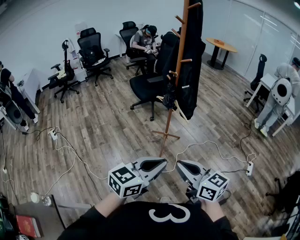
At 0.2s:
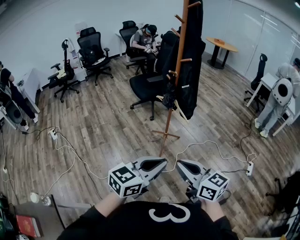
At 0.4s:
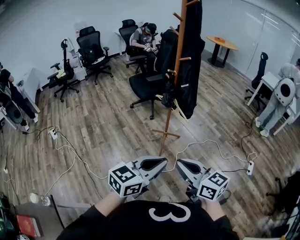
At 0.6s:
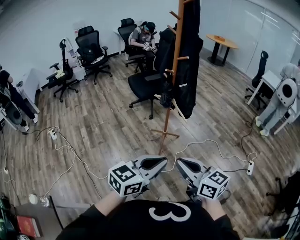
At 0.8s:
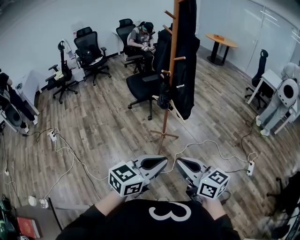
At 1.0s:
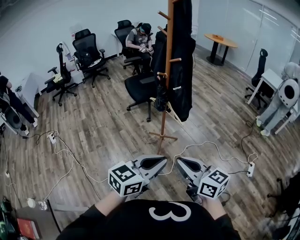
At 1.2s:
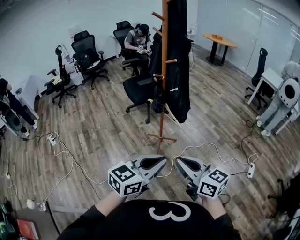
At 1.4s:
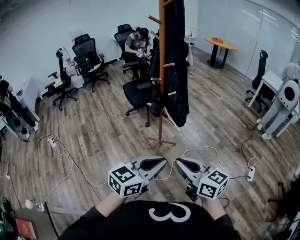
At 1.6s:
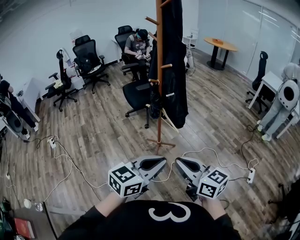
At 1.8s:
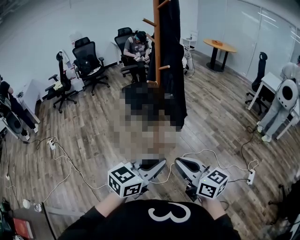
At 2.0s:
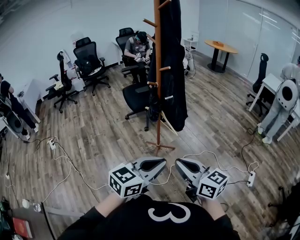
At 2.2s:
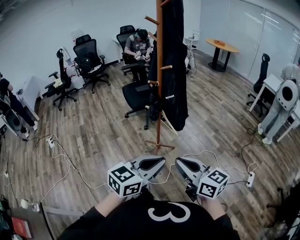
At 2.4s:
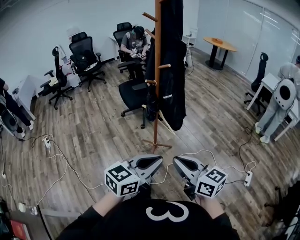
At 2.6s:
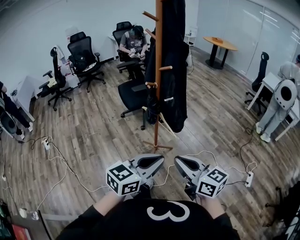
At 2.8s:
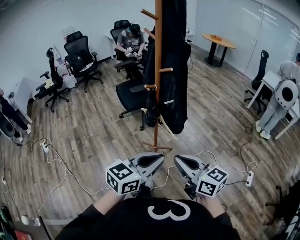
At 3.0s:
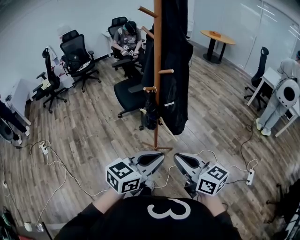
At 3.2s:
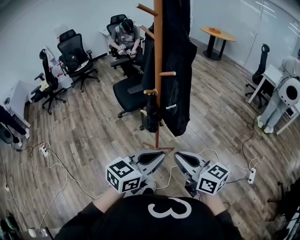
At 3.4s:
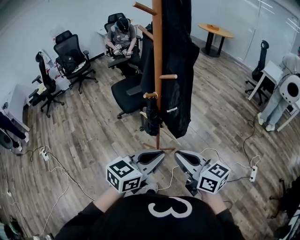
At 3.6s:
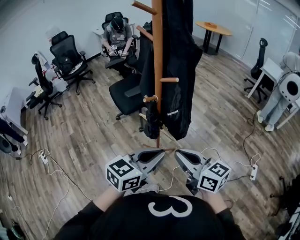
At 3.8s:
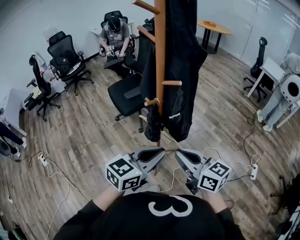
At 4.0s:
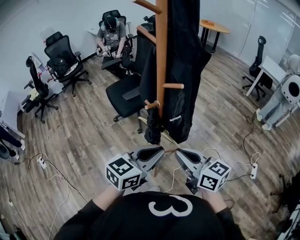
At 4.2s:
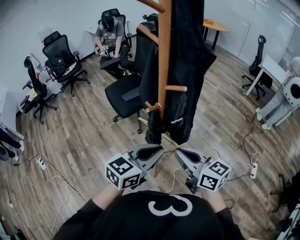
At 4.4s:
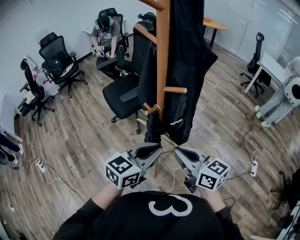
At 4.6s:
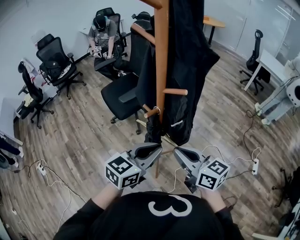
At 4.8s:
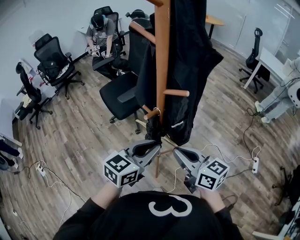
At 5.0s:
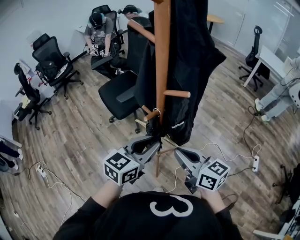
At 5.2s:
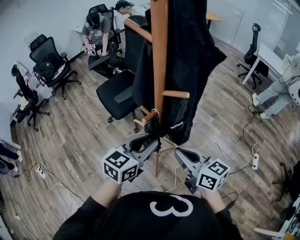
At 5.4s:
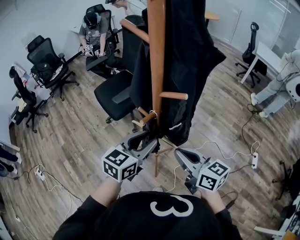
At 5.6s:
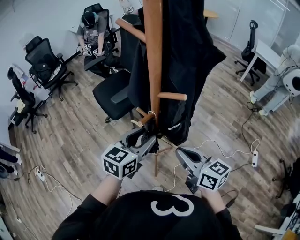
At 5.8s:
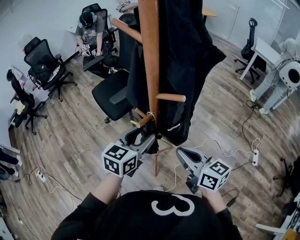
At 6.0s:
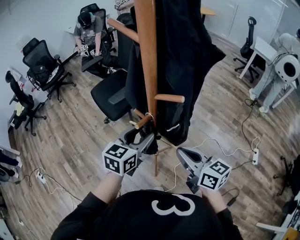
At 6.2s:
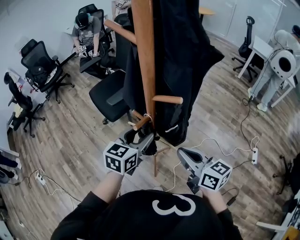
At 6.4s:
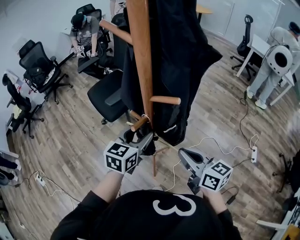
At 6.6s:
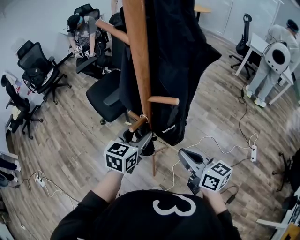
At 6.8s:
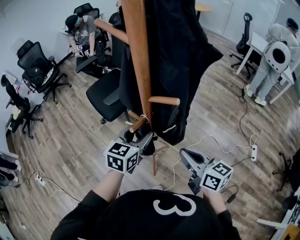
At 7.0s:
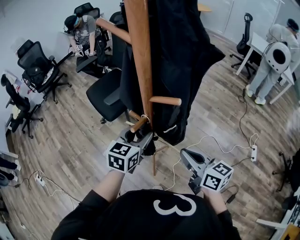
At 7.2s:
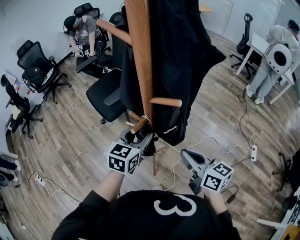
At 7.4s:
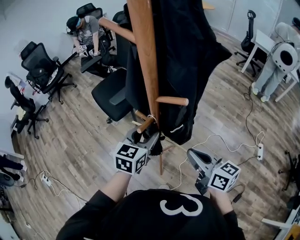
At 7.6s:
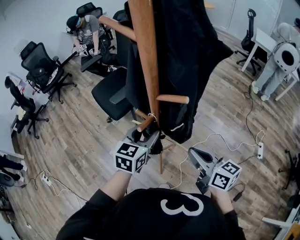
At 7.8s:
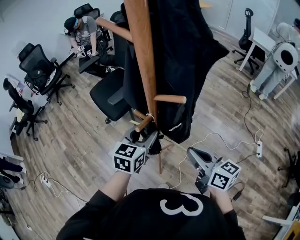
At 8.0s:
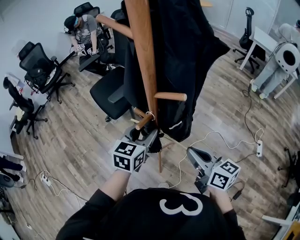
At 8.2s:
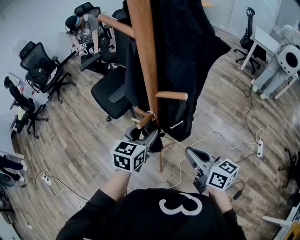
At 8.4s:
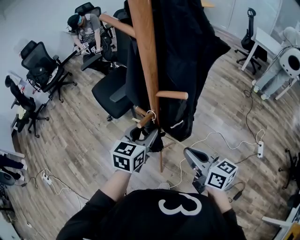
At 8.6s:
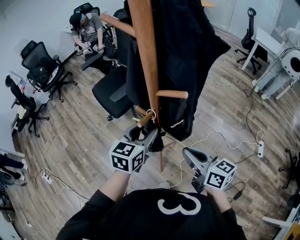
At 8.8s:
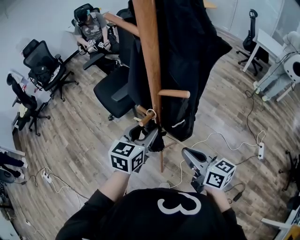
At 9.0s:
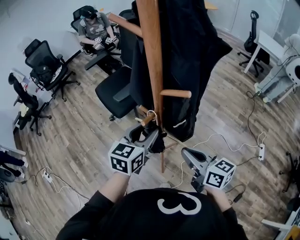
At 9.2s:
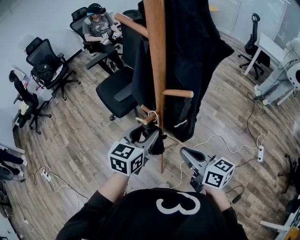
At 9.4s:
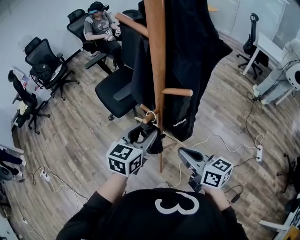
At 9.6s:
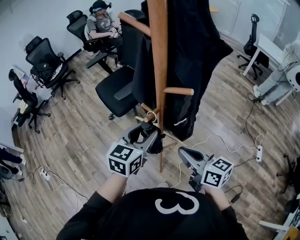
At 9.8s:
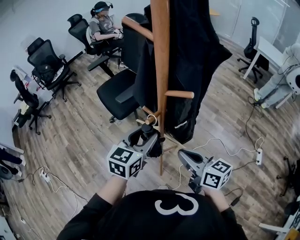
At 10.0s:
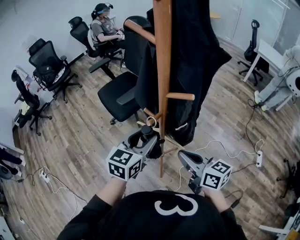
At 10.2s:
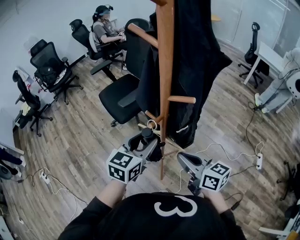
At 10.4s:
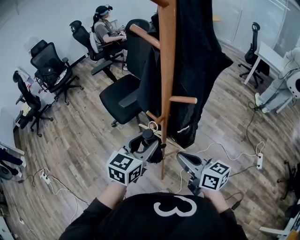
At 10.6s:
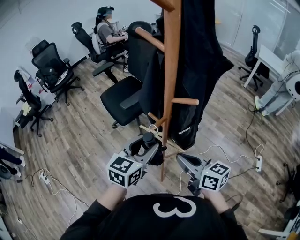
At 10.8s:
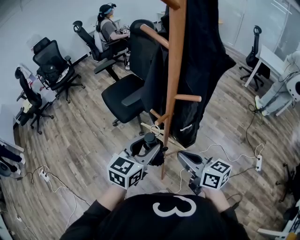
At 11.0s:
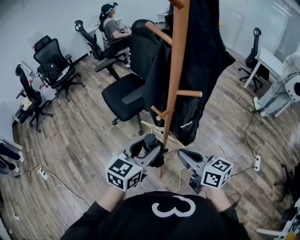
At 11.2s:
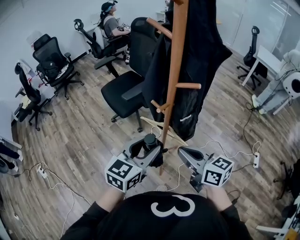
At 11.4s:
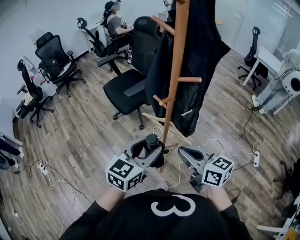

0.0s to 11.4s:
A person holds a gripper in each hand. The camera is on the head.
0.0s to 1.4s: The left gripper shifts some 15 cm to the right and forward. The right gripper travels forward and to the right by roughly 15 cm.
1.4s to 2.8s: Both grippers move forward, some 15 cm.
2.8s to 4.2s: The grippers both shift forward by some 20 cm.
4.2s to 5.6s: The right gripper heads forward, covering about 5 cm, while the left gripper goes roughly 15 cm forward, and opens.
5.6s to 7.2s: The left gripper moves some 5 cm.
7.2s to 8.6s: There are only small adjustments of the grippers.
8.6s to 10.0s: The left gripper shifts by approximately 5 cm.
10.0s to 11.4s: The left gripper heads backward, covering approximately 15 cm, while the right gripper heads backward, covering roughly 5 cm.

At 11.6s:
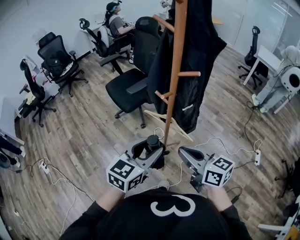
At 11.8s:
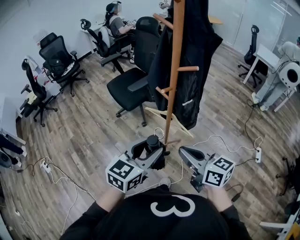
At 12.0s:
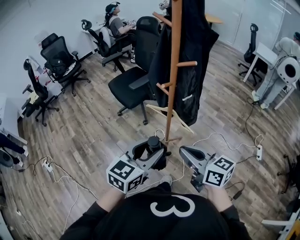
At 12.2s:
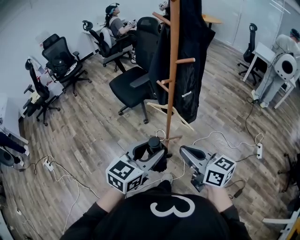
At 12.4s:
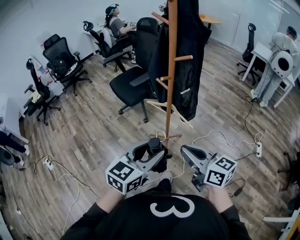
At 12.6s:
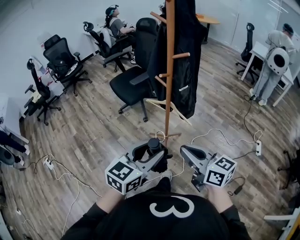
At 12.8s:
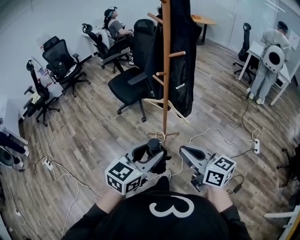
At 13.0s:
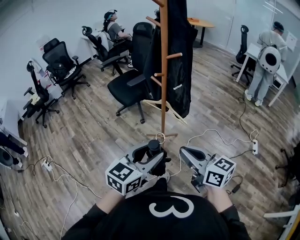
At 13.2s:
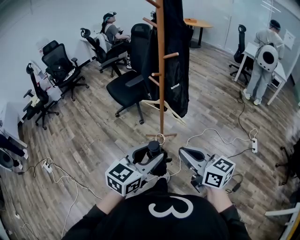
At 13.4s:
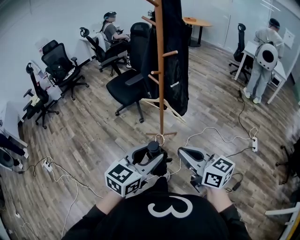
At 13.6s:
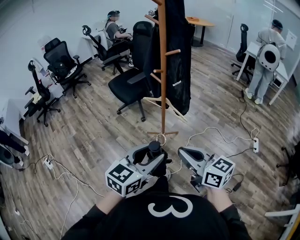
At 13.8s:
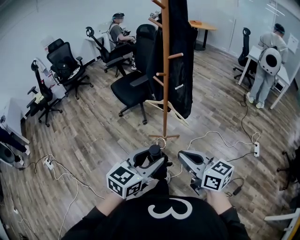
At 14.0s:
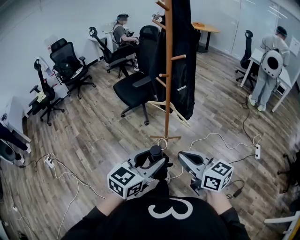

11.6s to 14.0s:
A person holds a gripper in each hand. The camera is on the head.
11.6s to 12.8s: Both grippers travel together backward, approximately 20 cm.
12.8s to 14.0s: Both grippers move backward, approximately 5 cm.

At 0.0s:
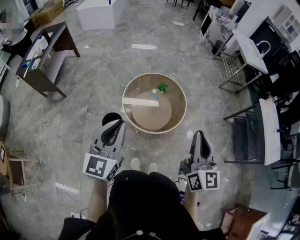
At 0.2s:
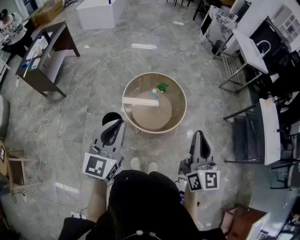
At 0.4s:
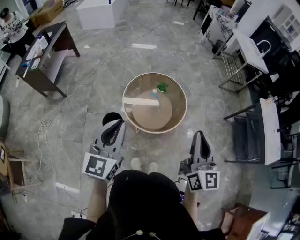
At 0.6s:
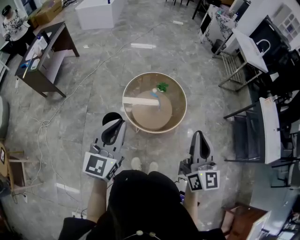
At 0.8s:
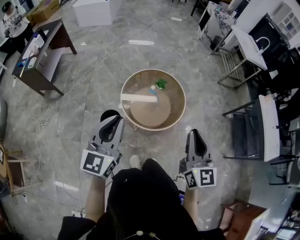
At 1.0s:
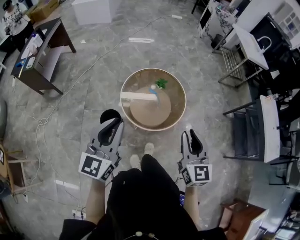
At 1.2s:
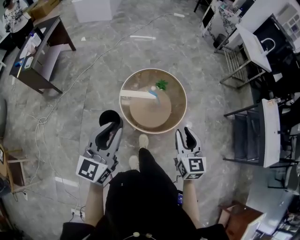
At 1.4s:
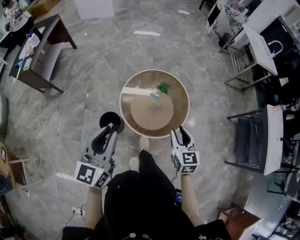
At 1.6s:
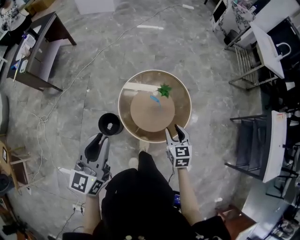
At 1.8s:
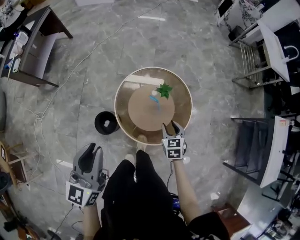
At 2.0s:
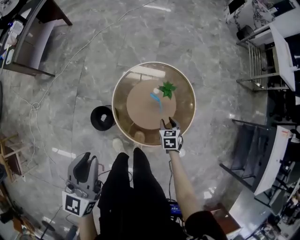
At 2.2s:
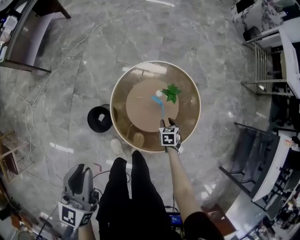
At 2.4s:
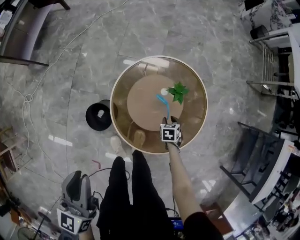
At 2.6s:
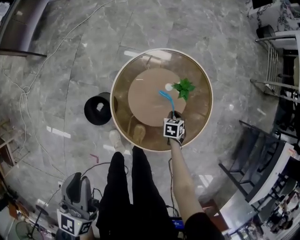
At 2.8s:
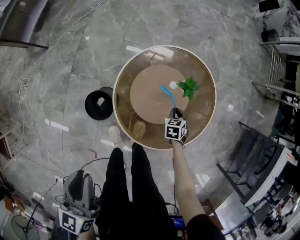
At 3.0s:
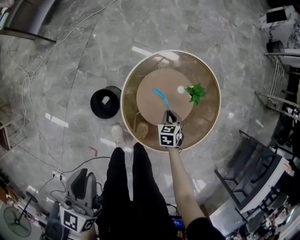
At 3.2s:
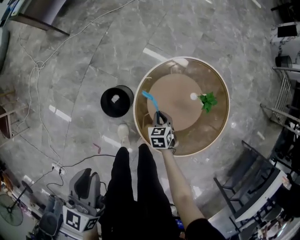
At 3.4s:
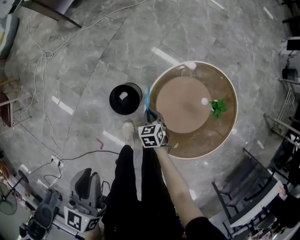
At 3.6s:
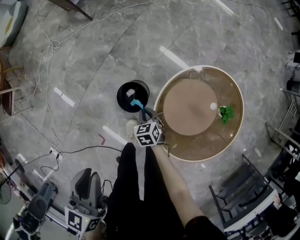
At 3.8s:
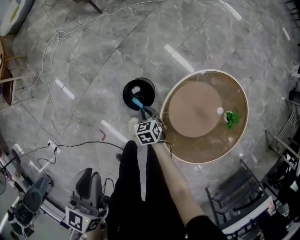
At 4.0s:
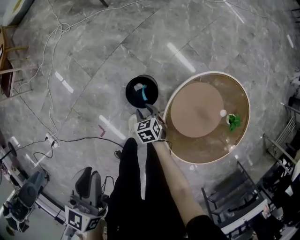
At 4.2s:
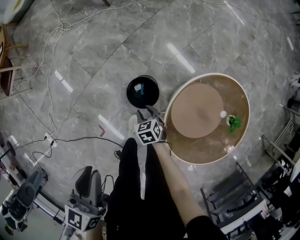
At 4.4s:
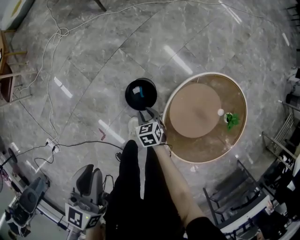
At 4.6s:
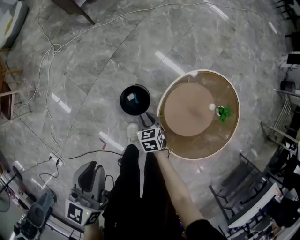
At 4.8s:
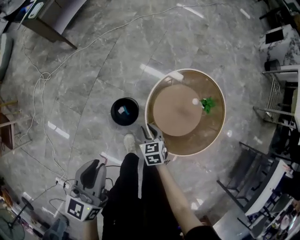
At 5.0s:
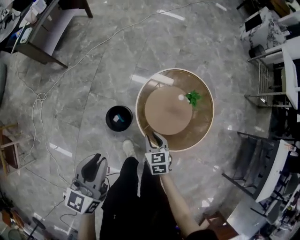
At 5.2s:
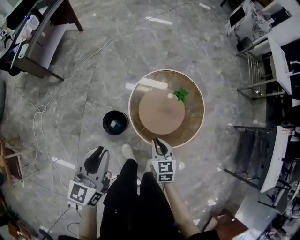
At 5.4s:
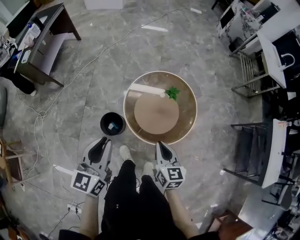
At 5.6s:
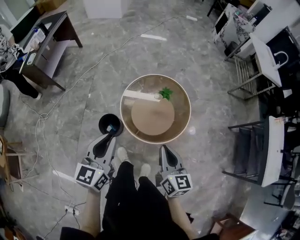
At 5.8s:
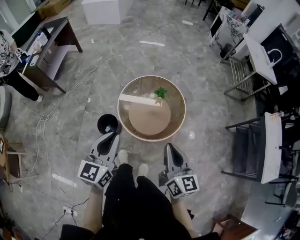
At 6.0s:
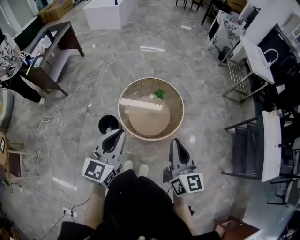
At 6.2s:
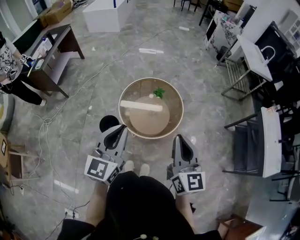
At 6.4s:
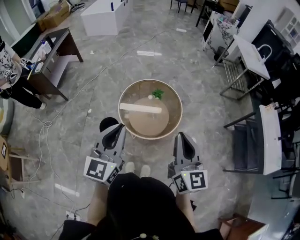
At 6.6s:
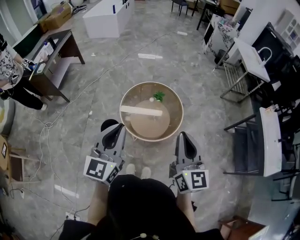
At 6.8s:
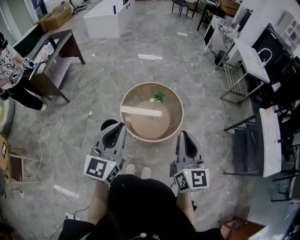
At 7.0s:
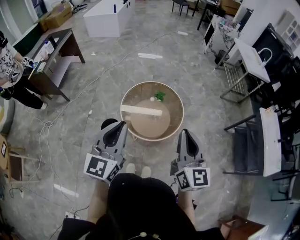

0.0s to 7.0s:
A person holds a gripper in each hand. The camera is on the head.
0.0s to 1.4s: The left gripper shifts roughly 10 cm forward; the right gripper goes approximately 25 cm downward and forward, swivels some 30 degrees, and opens up.
1.4s to 2.8s: The left gripper heads downward and forward, covering about 20 cm, and changes its angle by approximately 30 degrees. The right gripper shifts roughly 50 cm downward and forward, points its fingers some 40 degrees further downward, and closes.
2.8s to 4.2s: The right gripper moves some 40 cm, swivels some 50 degrees, and opens its fingers; the left gripper moves some 20 cm, and swivels about 30 degrees.
4.2s to 5.6s: The right gripper moves upward, some 50 cm, tilts its fingers about 40 degrees upward, and closes, while the left gripper moves some 25 cm, and swivels roughly 50 degrees.
5.6s to 7.0s: The right gripper moves upward and to the right, approximately 20 cm, and swivels roughly 20 degrees; the left gripper goes approximately 15 cm upward, to the right and backward.

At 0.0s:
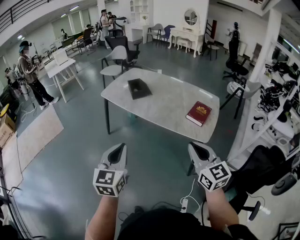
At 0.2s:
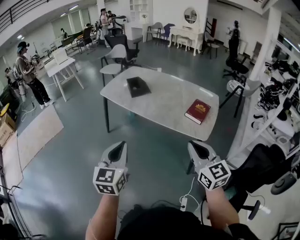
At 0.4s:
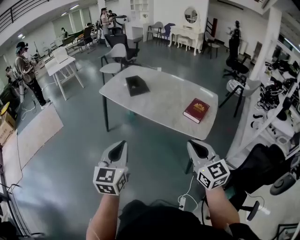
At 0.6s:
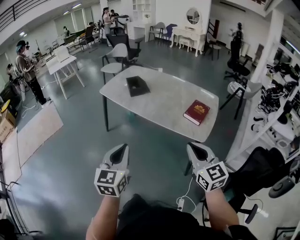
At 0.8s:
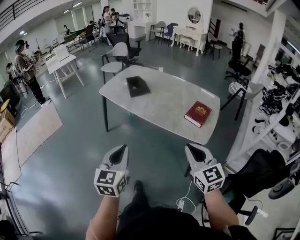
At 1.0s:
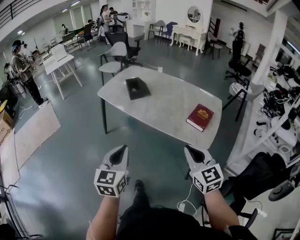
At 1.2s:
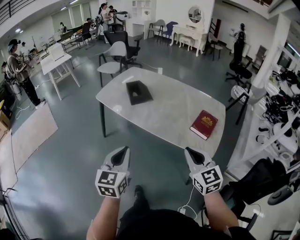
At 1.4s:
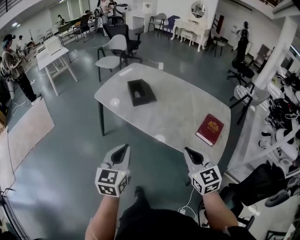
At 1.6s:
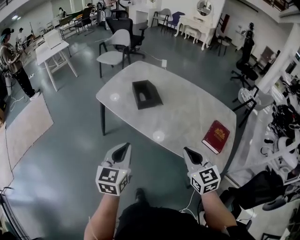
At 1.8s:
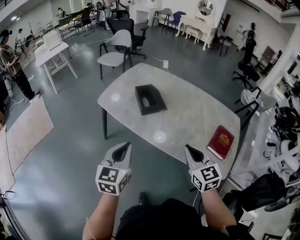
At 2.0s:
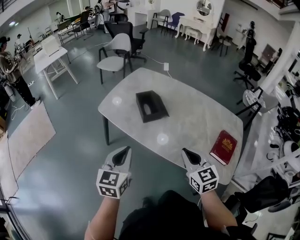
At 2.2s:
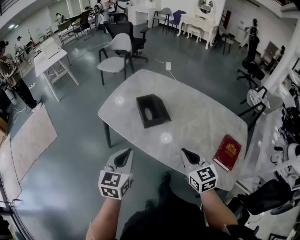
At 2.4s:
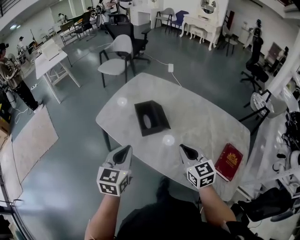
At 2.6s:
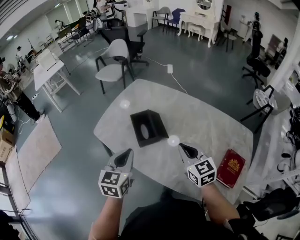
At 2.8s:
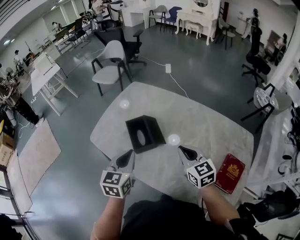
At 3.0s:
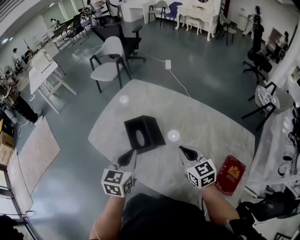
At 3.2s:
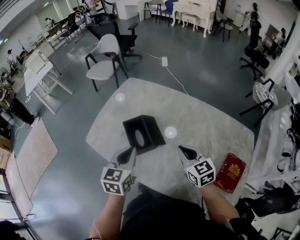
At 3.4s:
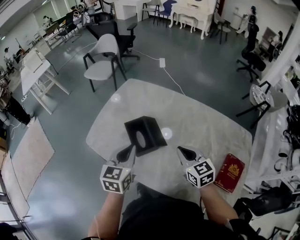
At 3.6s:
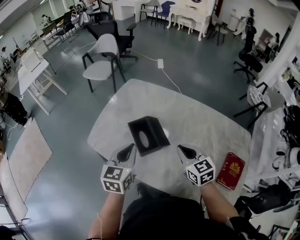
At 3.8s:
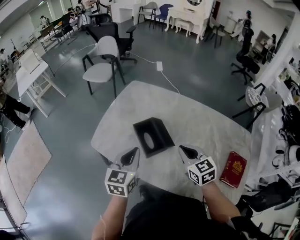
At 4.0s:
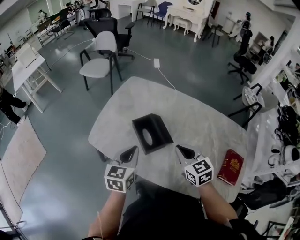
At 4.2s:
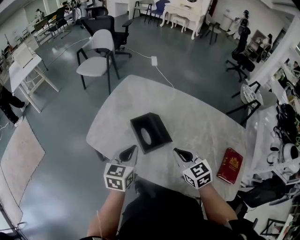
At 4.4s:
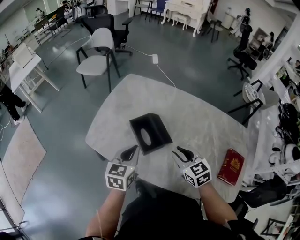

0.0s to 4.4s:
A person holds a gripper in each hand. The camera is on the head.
0.0s to 1.4s: The two grippers go approximately 25 cm forward.
1.4s to 3.0s: The two grippers travel together, forward, roughly 50 cm.
3.0s to 4.4s: The left gripper moves to the left and downward, approximately 10 cm. The right gripper heads to the left, covering some 15 cm, and opens up.
